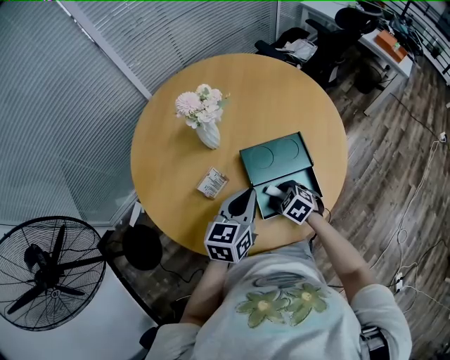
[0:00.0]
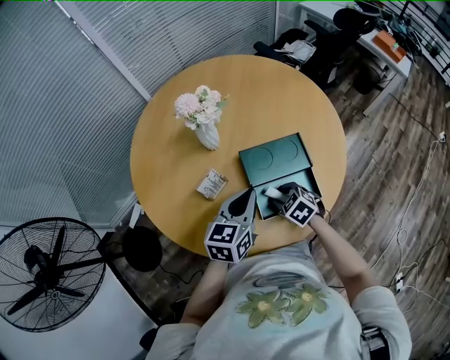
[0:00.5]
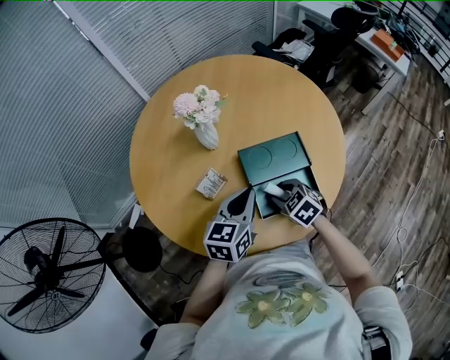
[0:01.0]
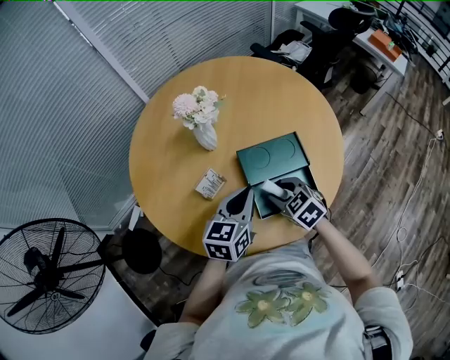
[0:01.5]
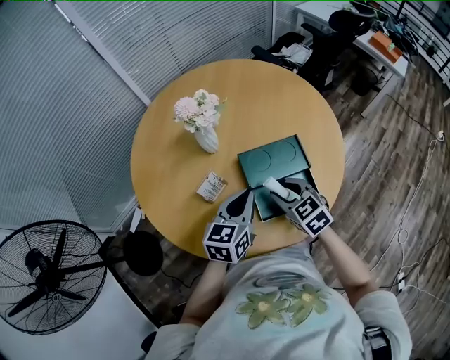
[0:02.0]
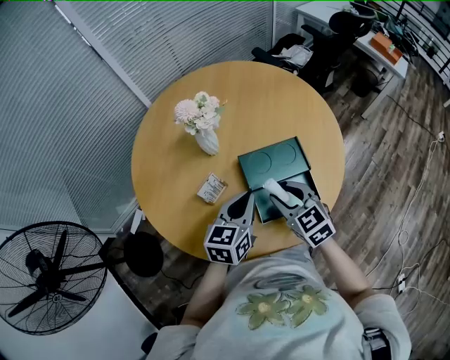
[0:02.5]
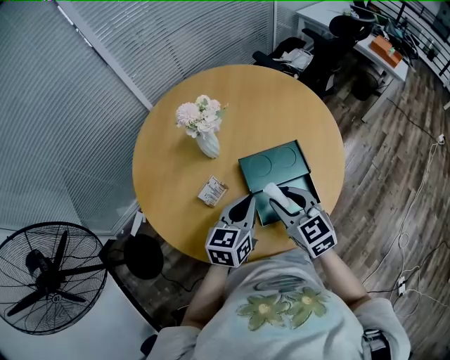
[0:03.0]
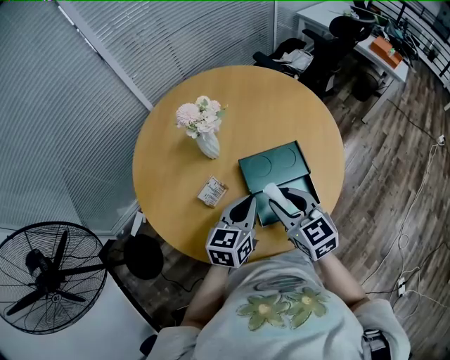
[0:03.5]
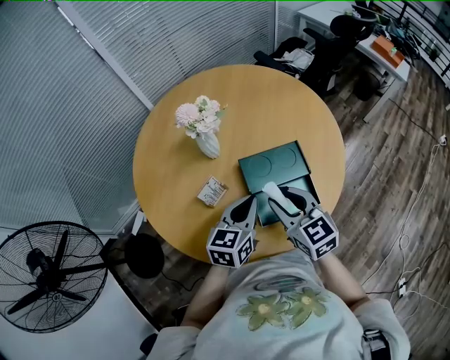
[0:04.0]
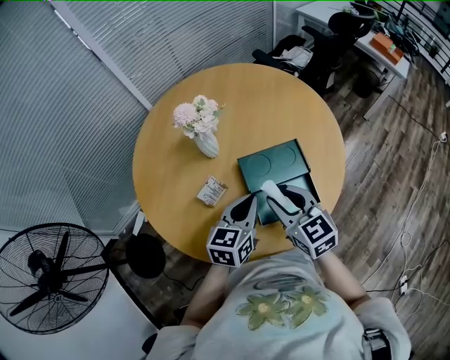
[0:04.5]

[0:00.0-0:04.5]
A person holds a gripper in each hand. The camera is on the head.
0:00.0 to 0:02.0: The right gripper moves upward, about 15 cm, and changes its angle by about 20 degrees.
0:02.0 to 0:04.5: The right gripper moves upward, some 10 cm.

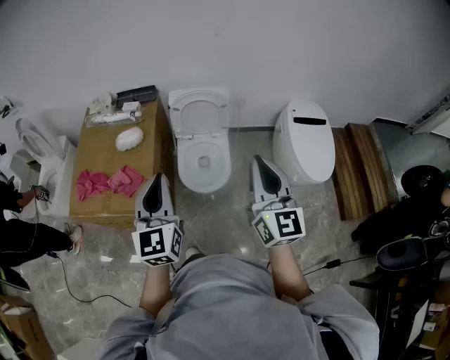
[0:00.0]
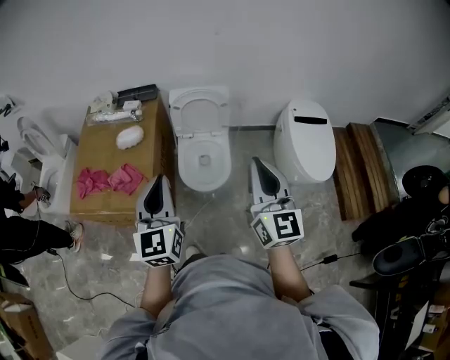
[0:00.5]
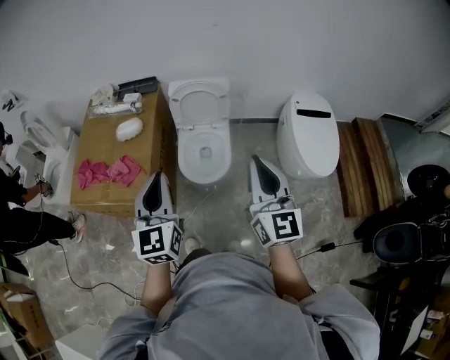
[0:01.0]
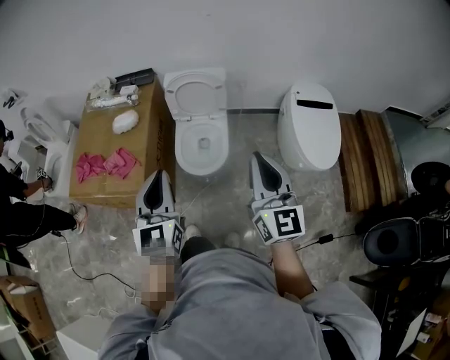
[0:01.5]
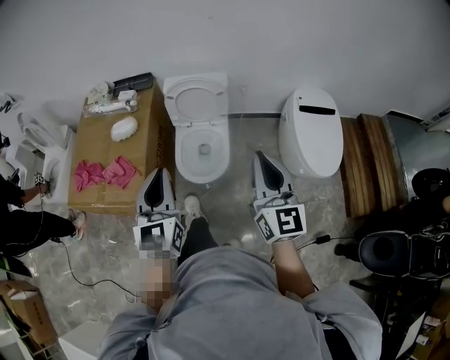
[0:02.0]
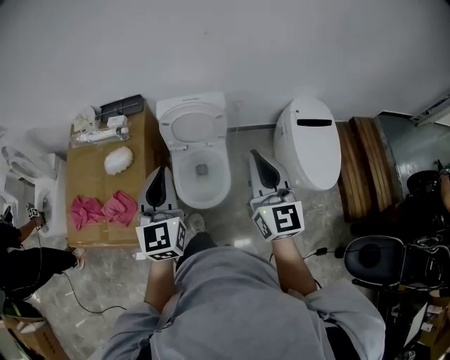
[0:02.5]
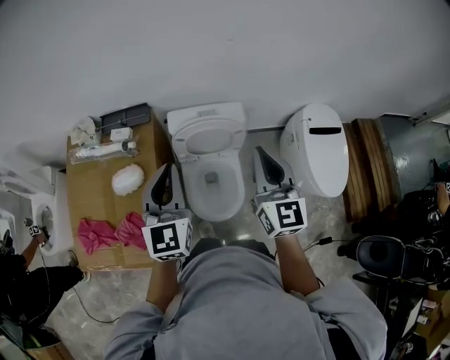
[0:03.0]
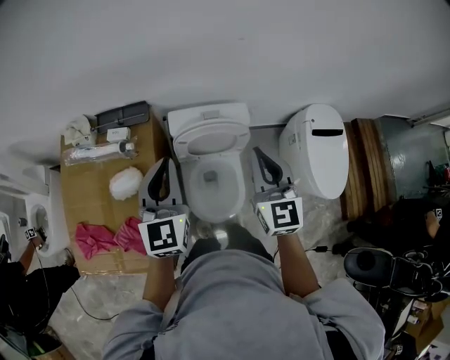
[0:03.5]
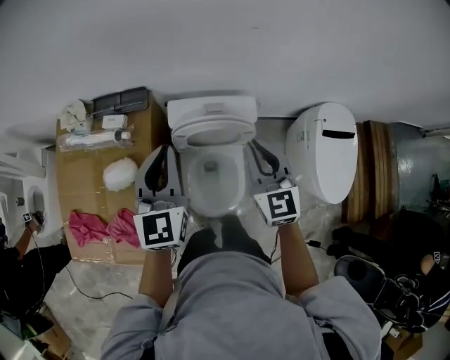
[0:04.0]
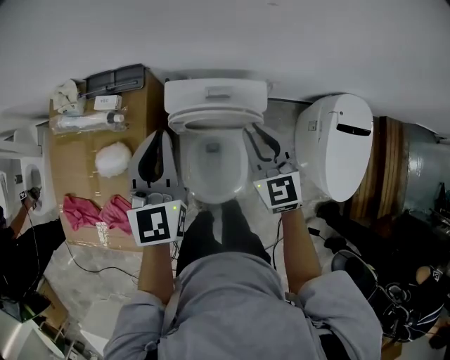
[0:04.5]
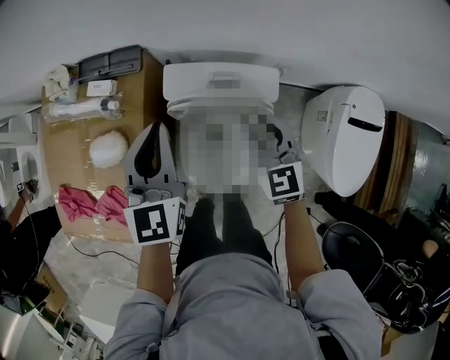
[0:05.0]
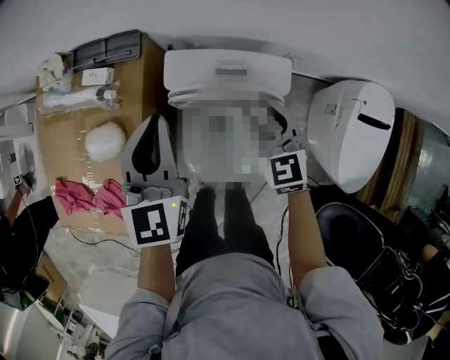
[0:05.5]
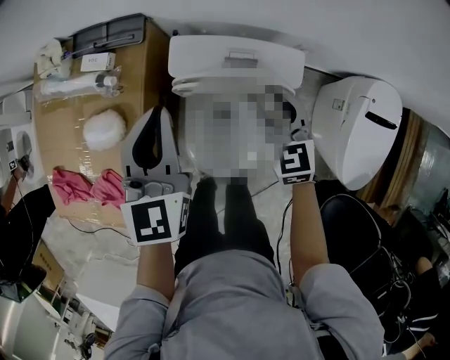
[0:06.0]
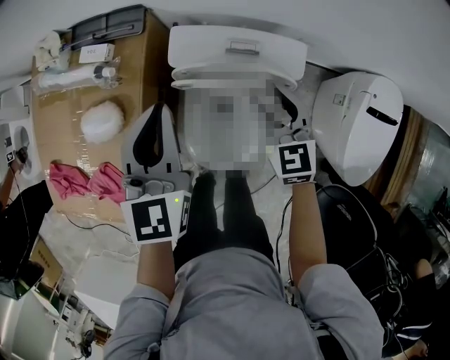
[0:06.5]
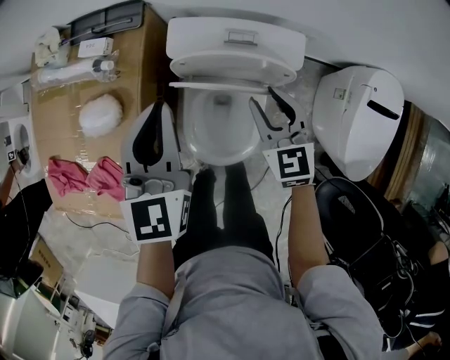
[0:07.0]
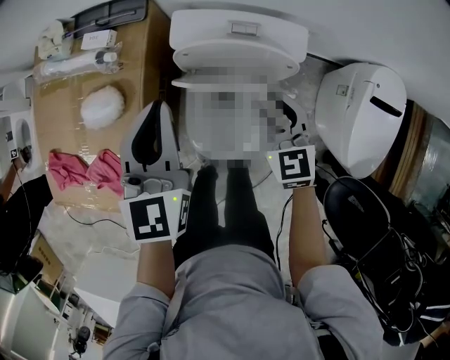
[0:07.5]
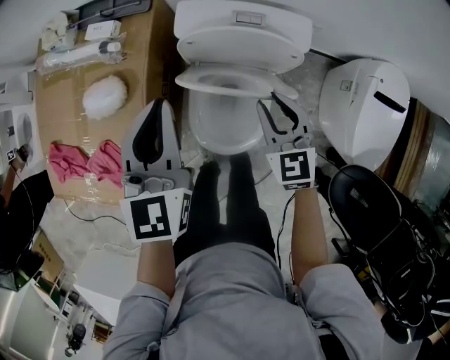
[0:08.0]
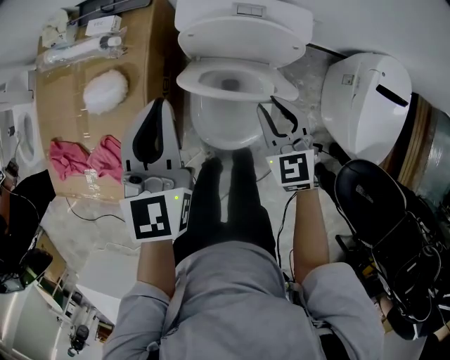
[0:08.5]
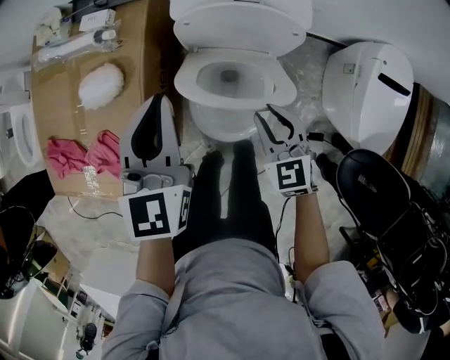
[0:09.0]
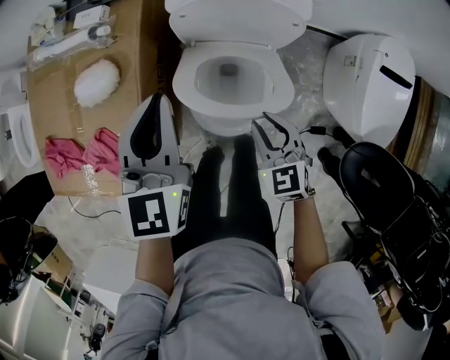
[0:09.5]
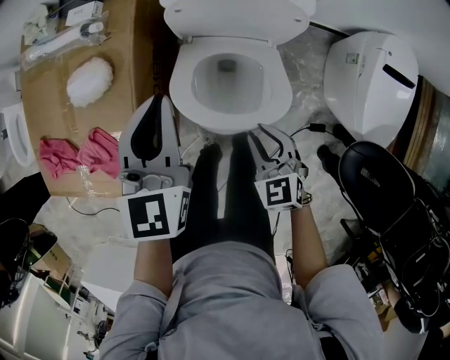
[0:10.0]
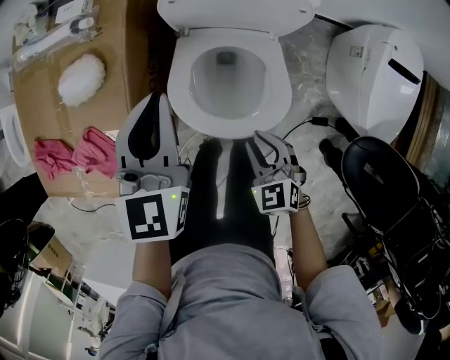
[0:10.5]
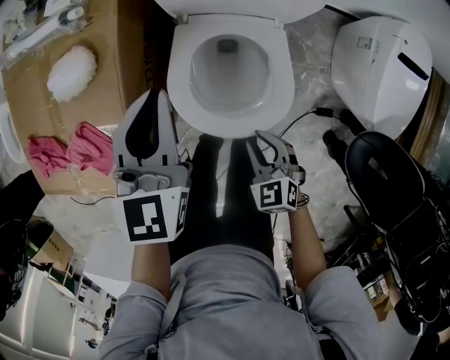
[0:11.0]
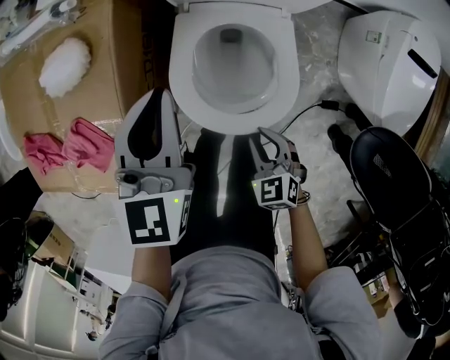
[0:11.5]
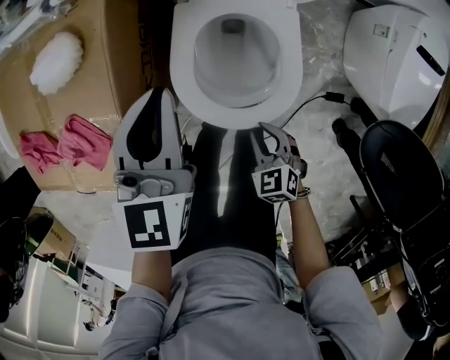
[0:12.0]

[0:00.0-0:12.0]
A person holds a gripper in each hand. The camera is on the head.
0:00.0 to 0:02.0: The grippers both shift to the right by about 10 cm.
0:02.0 to 0:04.0: Both grippers are carried forward, roughly 40 cm. The right gripper swivels roughly 30 degrees.
0:04.0 to 0:06.0: The left gripper heads downward and forward, covering some 15 cm. The right gripper shifts some 20 cm downward and forward, and opens up.
0:06.0 to 0:08.0: Both grippers travel together backward, about 10 cm.
0:08.0 to 0:10.0: The right gripper travels backward and downward by roughly 15 cm, while the left gripper changes place by roughly 5 cm.
0:10.0 to 0:12.0: The left gripper goes some 10 cm downward, while the right gripper heads downward and backward, covering approximately 20 cm.

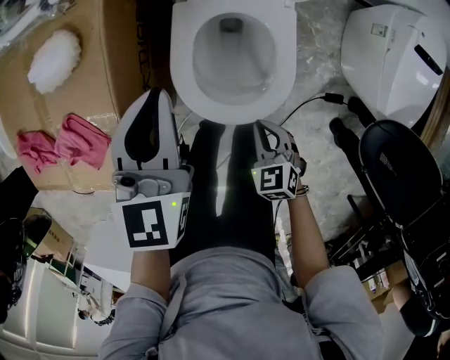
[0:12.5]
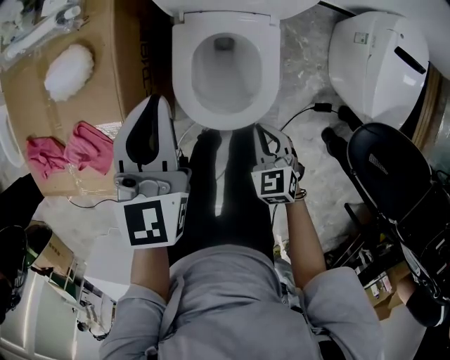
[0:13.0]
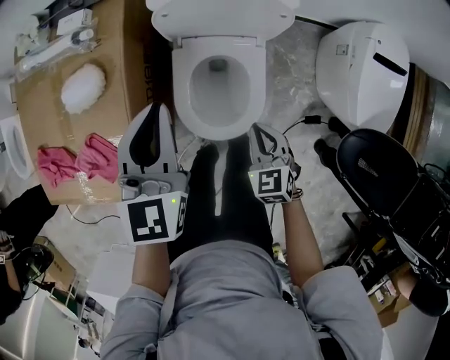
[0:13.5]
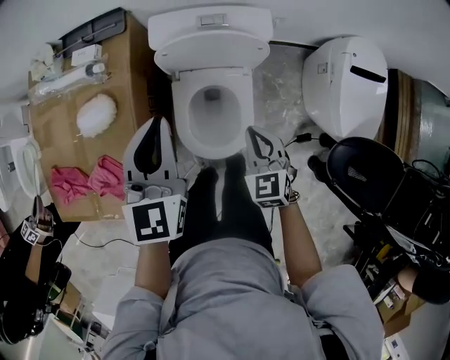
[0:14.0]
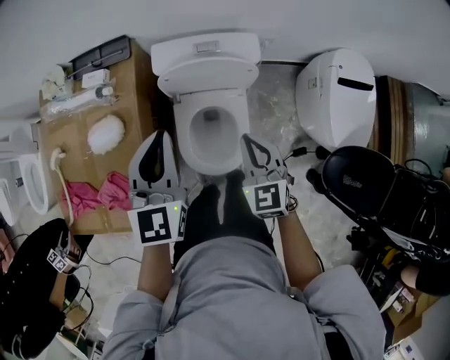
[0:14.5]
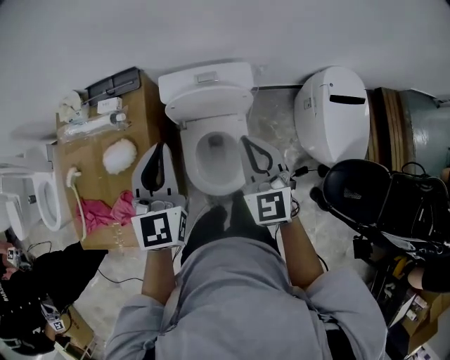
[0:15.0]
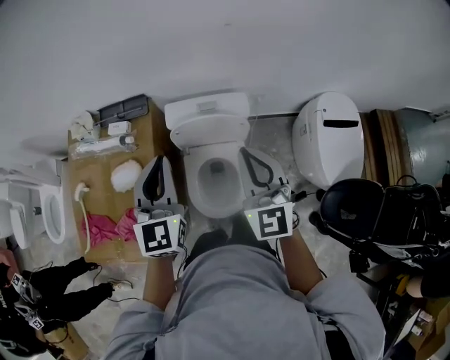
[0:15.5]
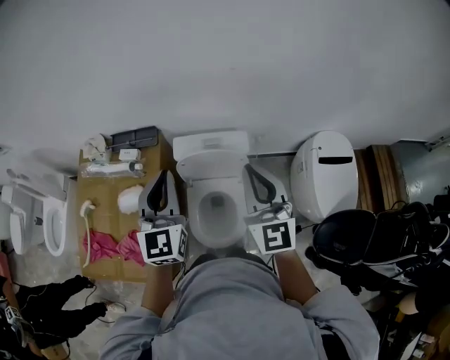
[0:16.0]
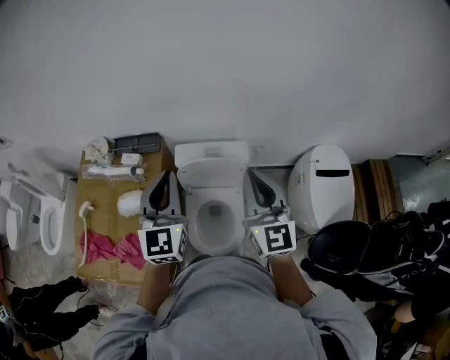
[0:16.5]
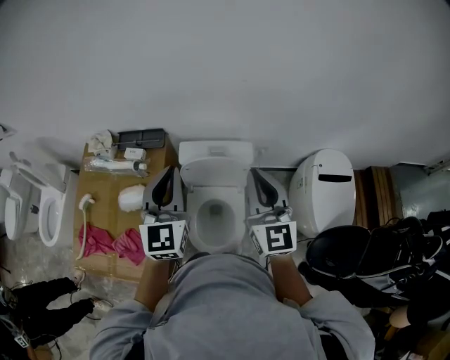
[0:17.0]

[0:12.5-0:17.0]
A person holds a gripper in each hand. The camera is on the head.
0:12.5 to 0:14.5: The left gripper shifts approximately 20 cm upward, while the right gripper heads upward and forward, covering roughly 35 cm, and swivels about 30 degrees.
0:14.5 to 0:17.0: The right gripper moves upward, approximately 25 cm, and angles its fingers upward, by about 40 degrees; the left gripper is displaced upward by about 15 cm.

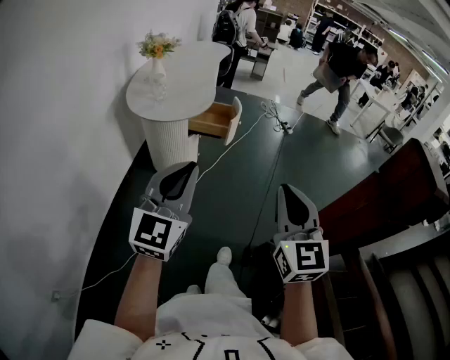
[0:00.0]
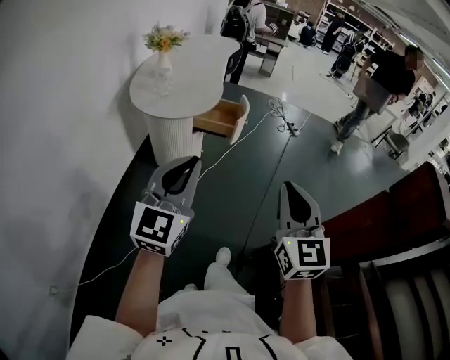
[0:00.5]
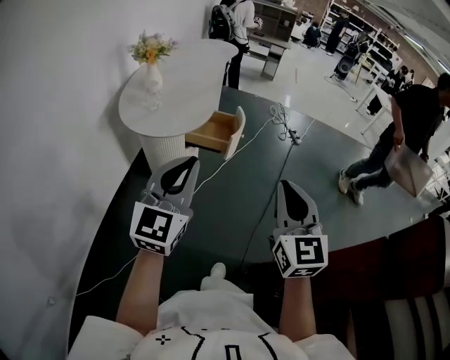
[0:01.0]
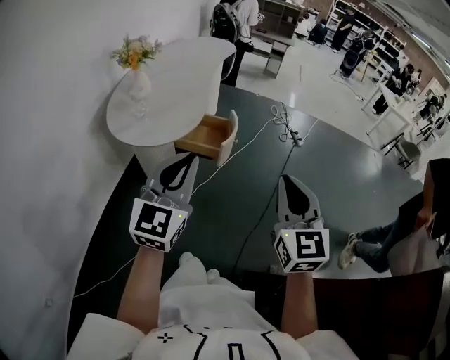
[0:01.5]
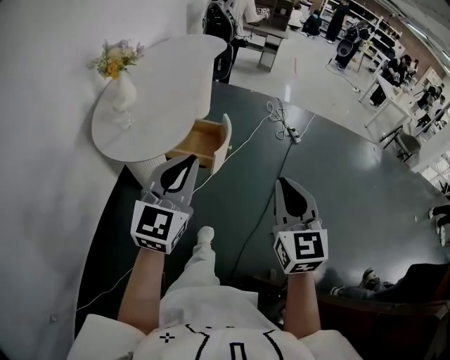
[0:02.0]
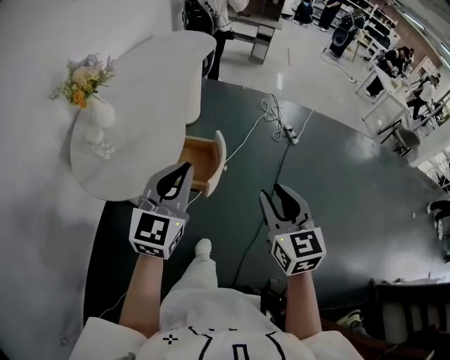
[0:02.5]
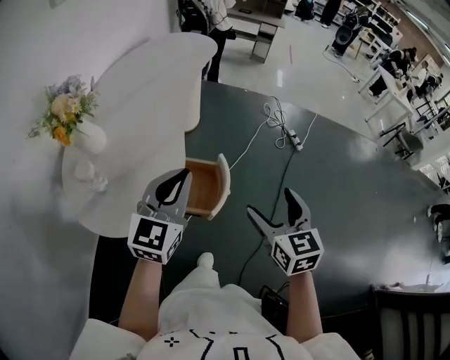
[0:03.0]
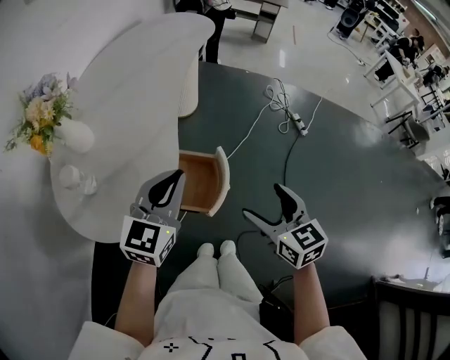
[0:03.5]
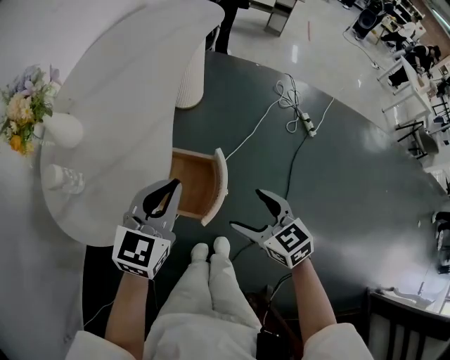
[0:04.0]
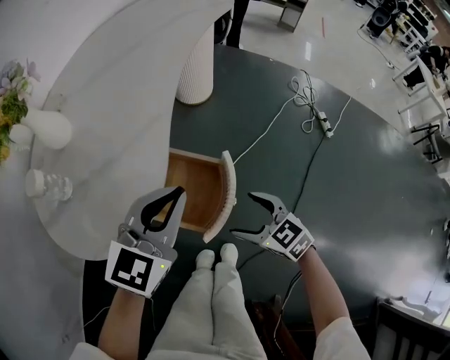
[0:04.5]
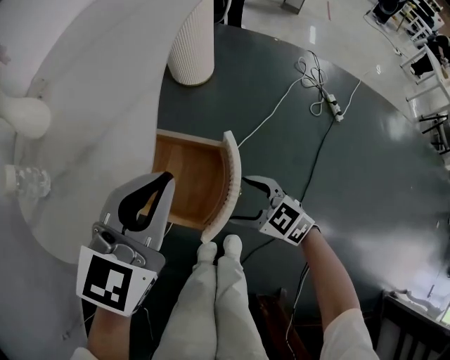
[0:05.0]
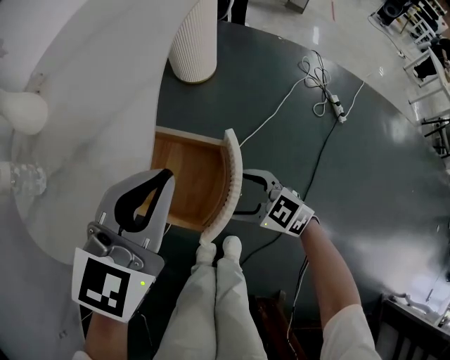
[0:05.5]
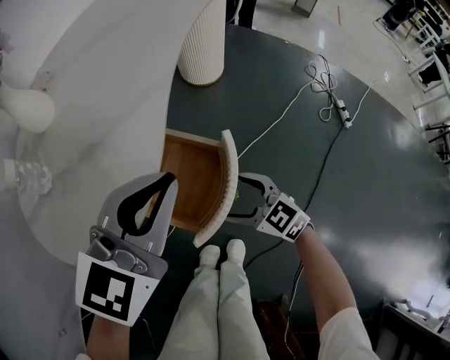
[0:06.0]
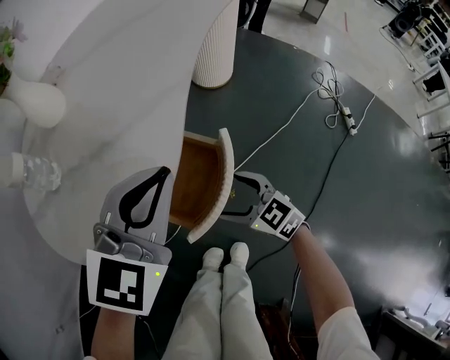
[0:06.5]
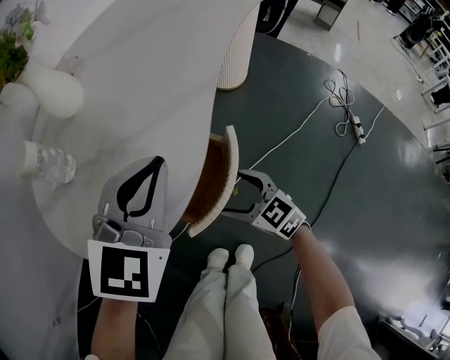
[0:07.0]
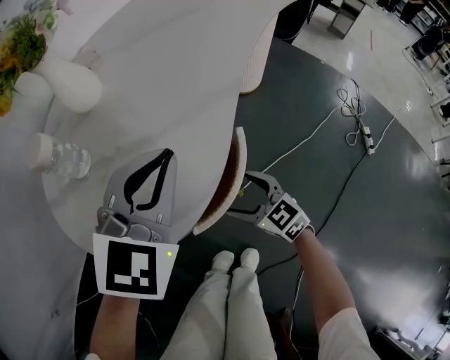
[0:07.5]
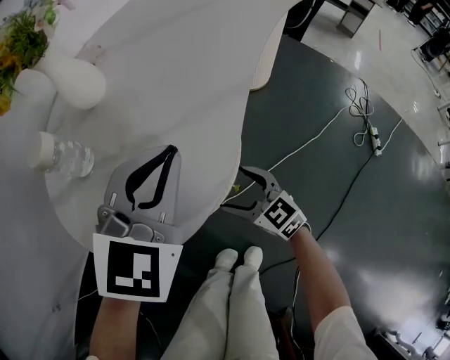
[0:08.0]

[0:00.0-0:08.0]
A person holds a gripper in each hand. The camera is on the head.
0:00.0 to 0:02.0: The grippers both shift forward by approximately 35 cm.
0:02.0 to 0:04.0: The grippers both shift forward and downward by roughly 40 cm. The left gripper swivels roughly 20 degrees, while the right gripper turns by roughly 40 degrees, and opens up.
0:04.0 to 0:06.0: The left gripper shifts approximately 10 cm downward, while the right gripper shifts roughly 20 cm downward, and changes its angle by some 30 degrees.
0:06.0 to 0:08.0: The left gripper moves forward and to the left, some 15 cm, and turns by some 20 degrees. The right gripper is displaced to the left and forward by some 15 cm.
